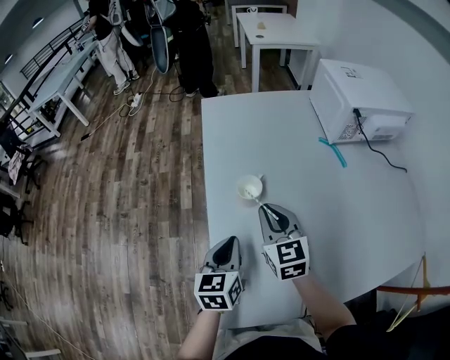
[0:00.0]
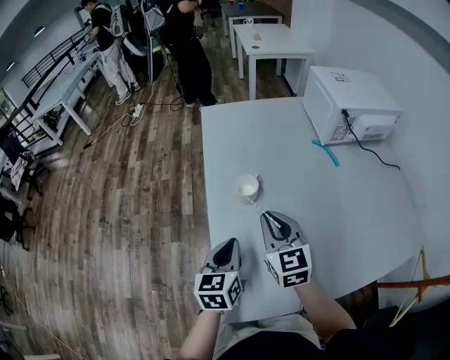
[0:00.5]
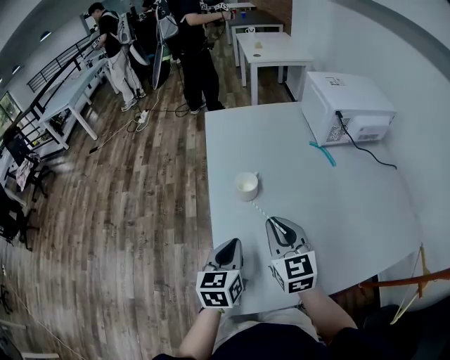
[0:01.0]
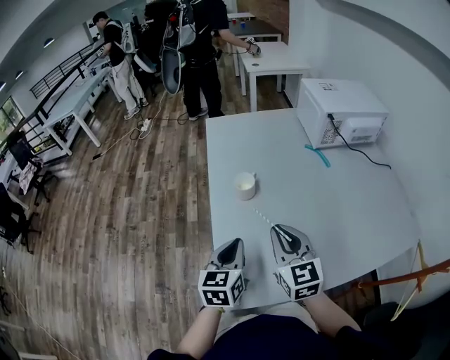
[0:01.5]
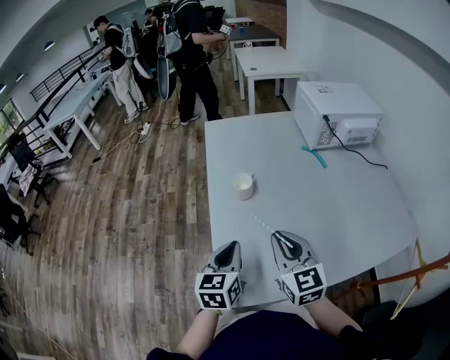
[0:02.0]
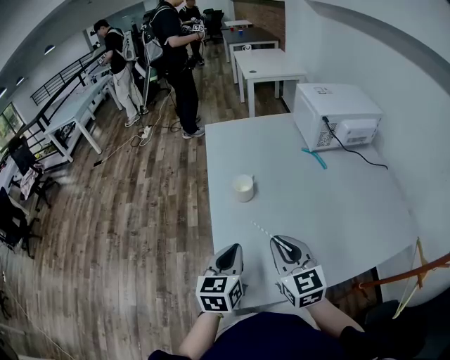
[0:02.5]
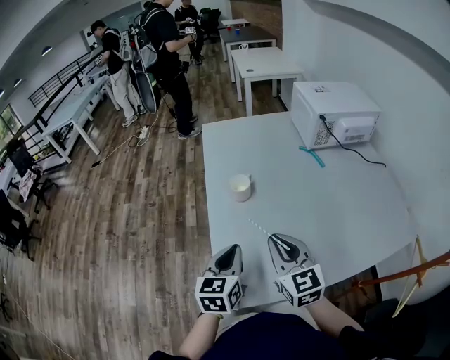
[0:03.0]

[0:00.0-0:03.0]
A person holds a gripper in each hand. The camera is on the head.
0:00.0 to 0:01.5: The left gripper moves backward and upward, approximately 10 cm. Meanwhile the right gripper moves backward and upward, some 15 cm.
0:01.5 to 0:03.0: The grippers stay close to where they were, moving slightly.

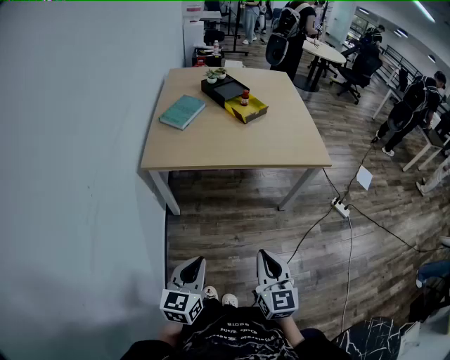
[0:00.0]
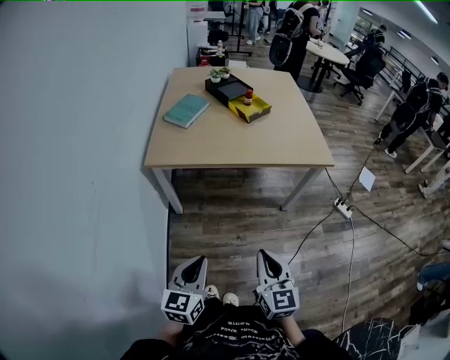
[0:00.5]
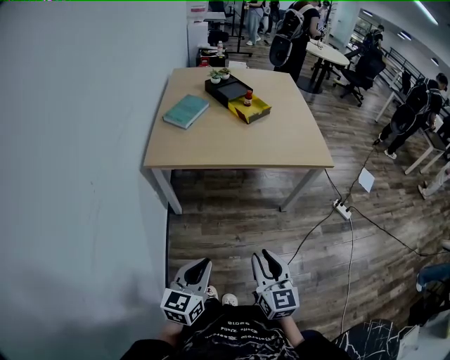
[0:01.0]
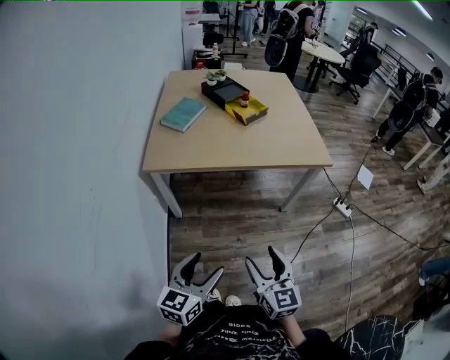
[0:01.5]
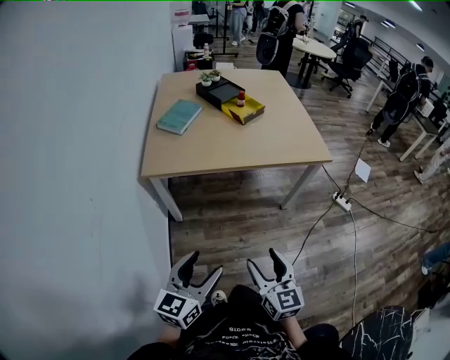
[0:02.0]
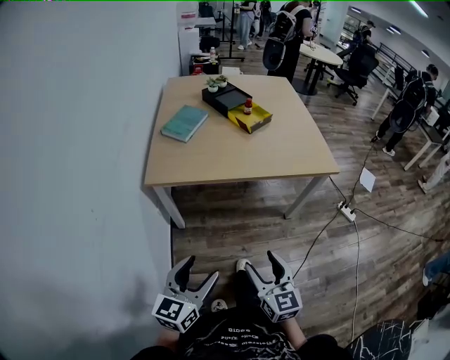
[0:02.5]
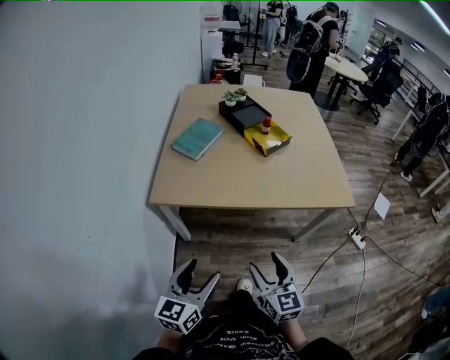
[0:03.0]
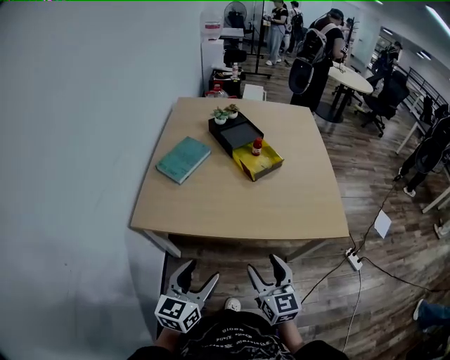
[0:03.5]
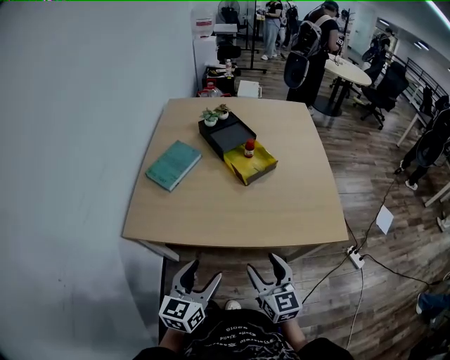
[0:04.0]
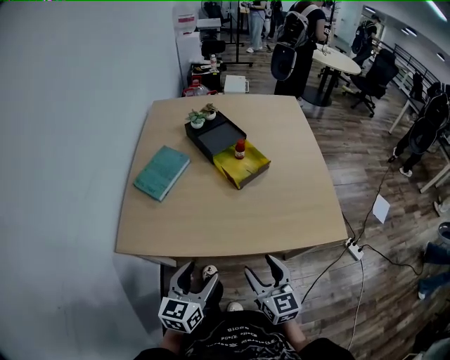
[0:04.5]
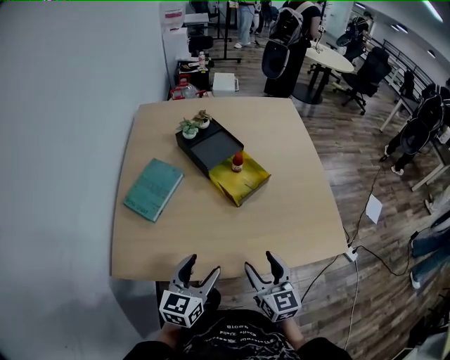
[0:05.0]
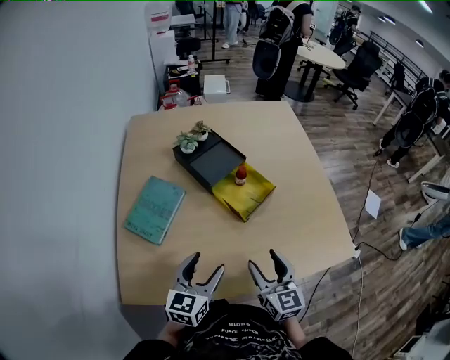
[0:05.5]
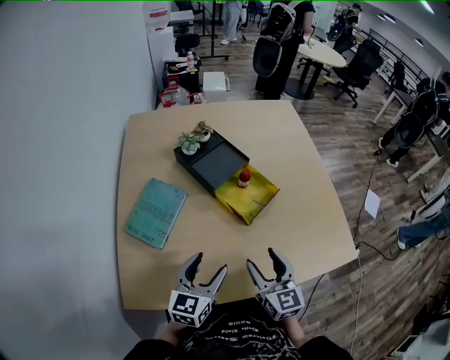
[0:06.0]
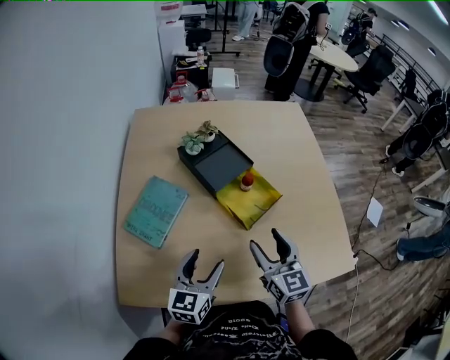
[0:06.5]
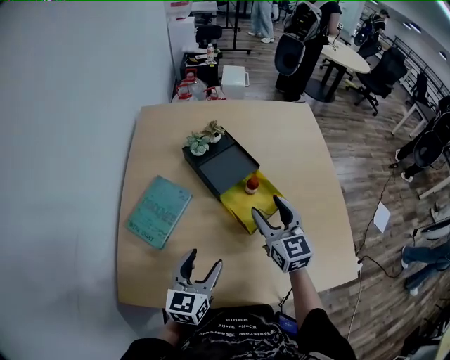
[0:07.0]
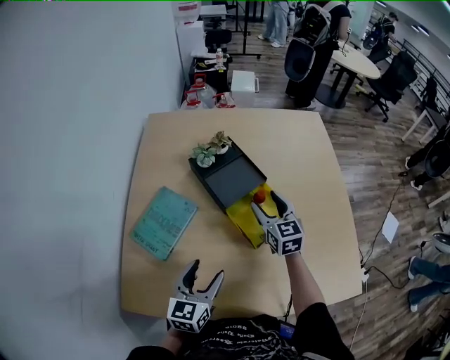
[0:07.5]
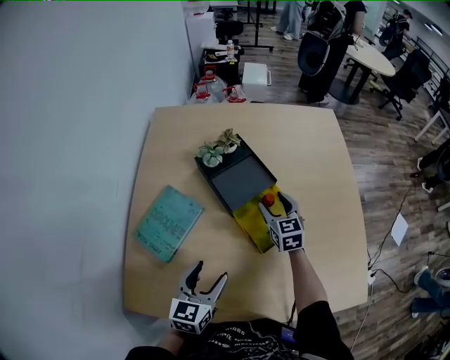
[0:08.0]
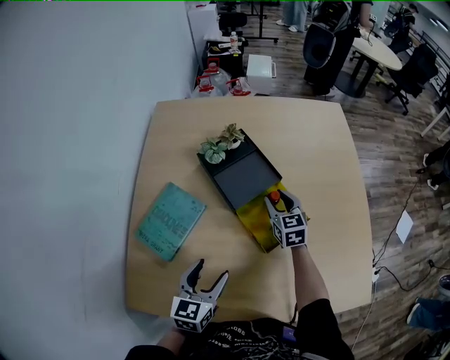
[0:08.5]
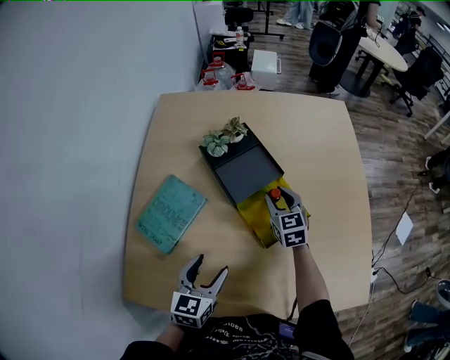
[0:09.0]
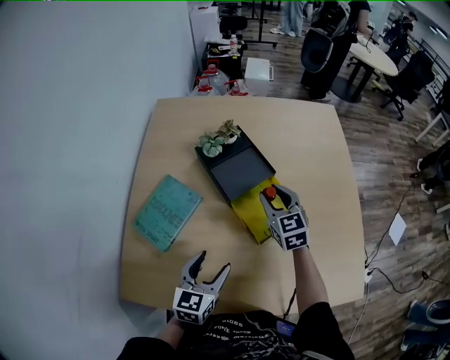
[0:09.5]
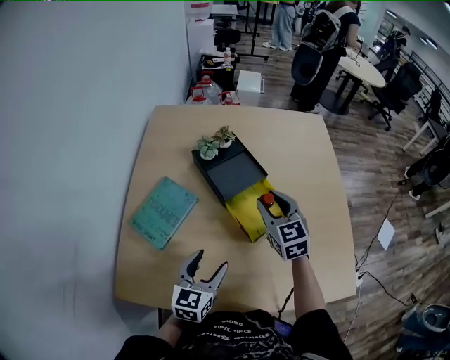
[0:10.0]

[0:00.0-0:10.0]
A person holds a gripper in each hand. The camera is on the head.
0:00.0 to 0:02.0: The right gripper opens its fingers. Meanwhile the left gripper opens its fingers.
0:02.0 to 0:04.0: Both grippers move forward, approximately 35 cm.
0:04.0 to 0:06.0: Both grippers travel together forward, roughly 25 cm.
0:06.0 to 0:08.0: The left gripper goes roughly 10 cm forward. Meanwhile the right gripper goes some 30 cm forward.
0:08.0 to 0:10.0: The right gripper goes some 15 cm upward and backward, and closes.

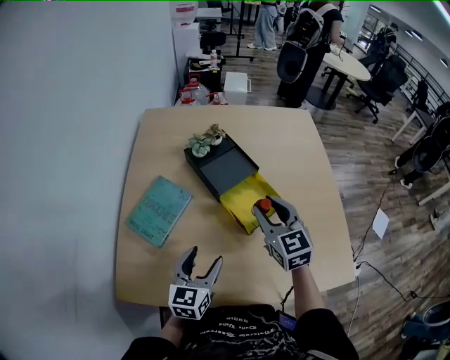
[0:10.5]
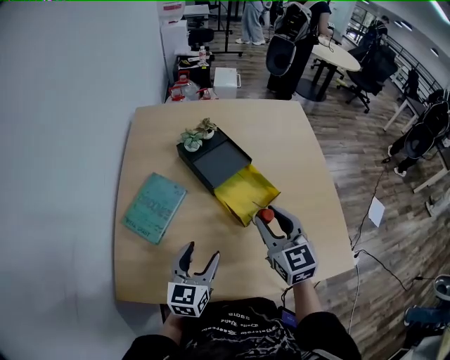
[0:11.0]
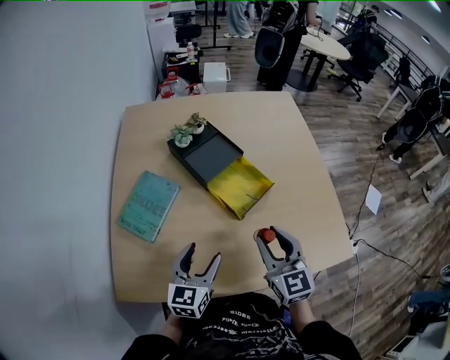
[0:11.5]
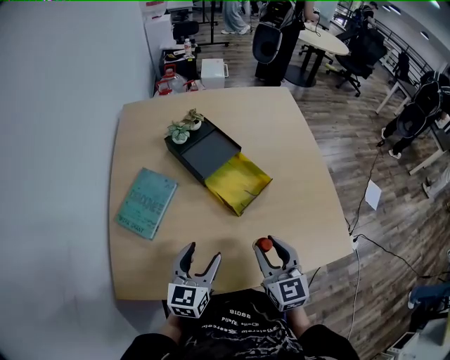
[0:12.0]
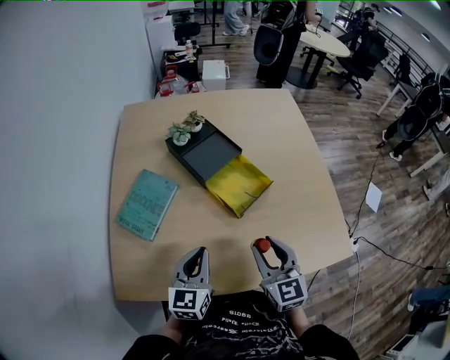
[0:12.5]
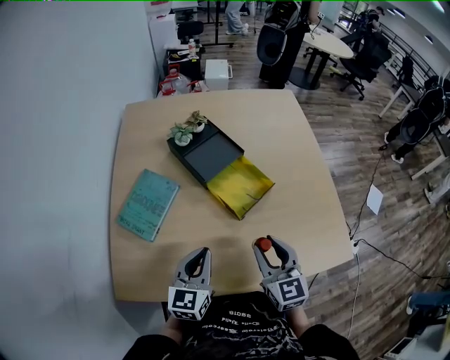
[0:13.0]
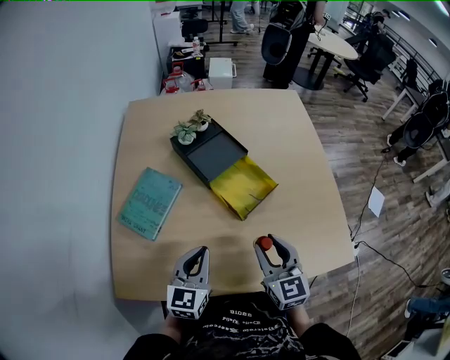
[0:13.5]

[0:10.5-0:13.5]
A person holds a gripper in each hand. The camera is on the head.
0:10.5 to 0:12.0: The right gripper travels backward by some 15 cm.
0:12.0 to 0:13.5: The left gripper closes up.

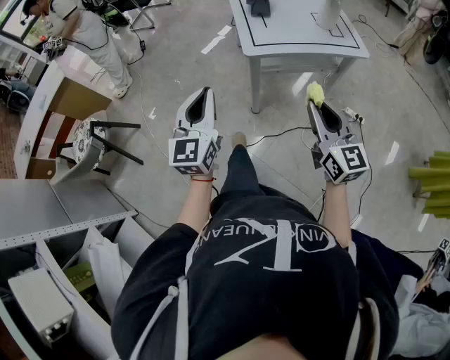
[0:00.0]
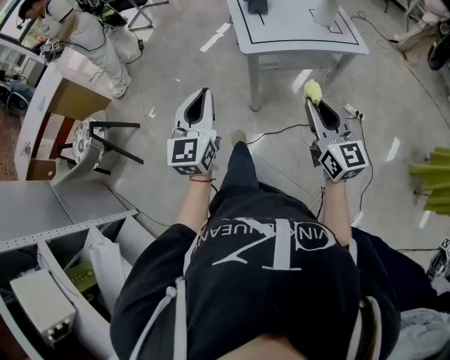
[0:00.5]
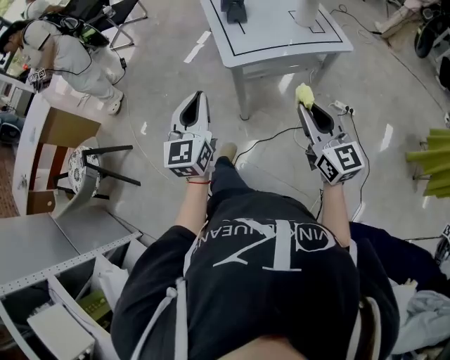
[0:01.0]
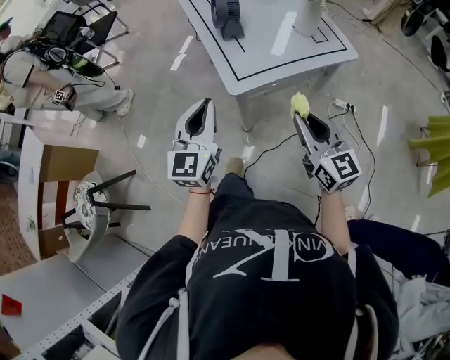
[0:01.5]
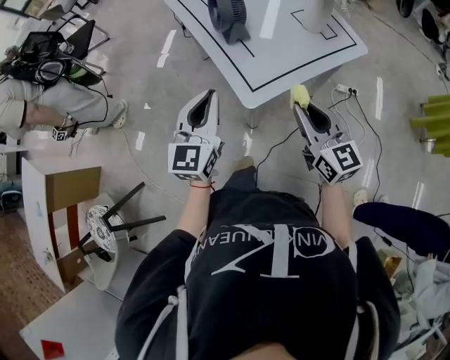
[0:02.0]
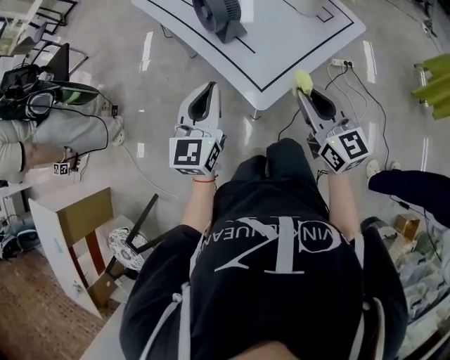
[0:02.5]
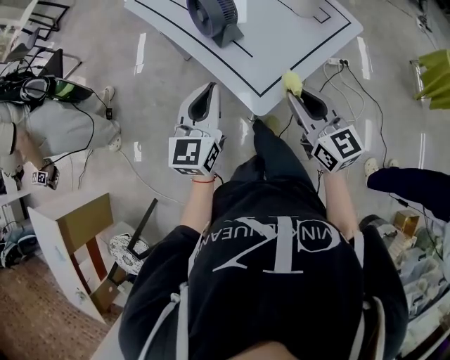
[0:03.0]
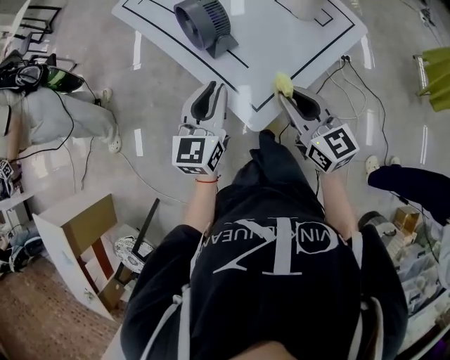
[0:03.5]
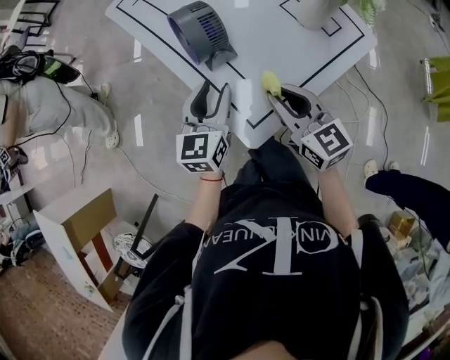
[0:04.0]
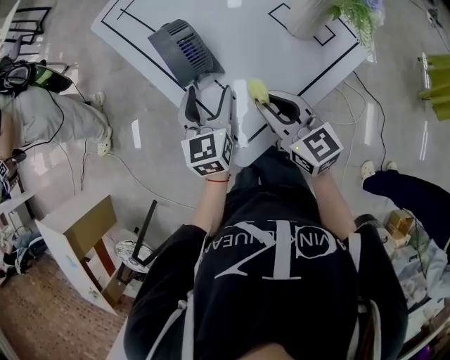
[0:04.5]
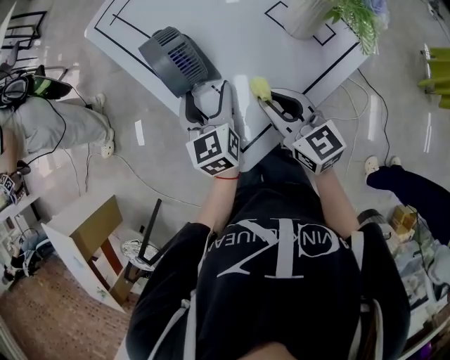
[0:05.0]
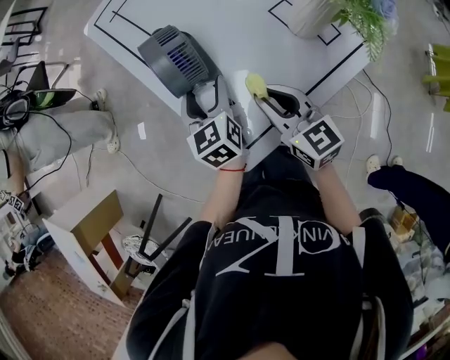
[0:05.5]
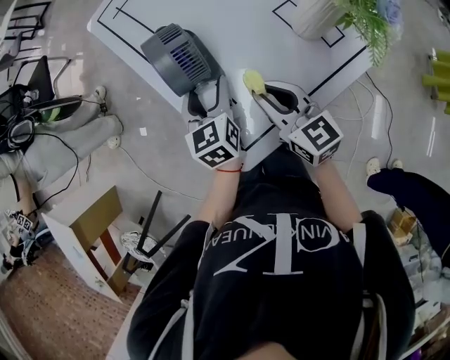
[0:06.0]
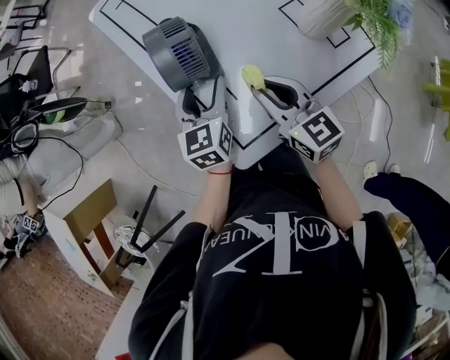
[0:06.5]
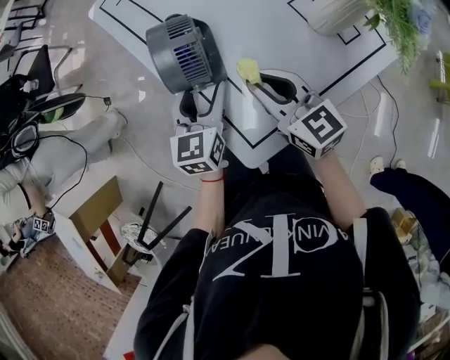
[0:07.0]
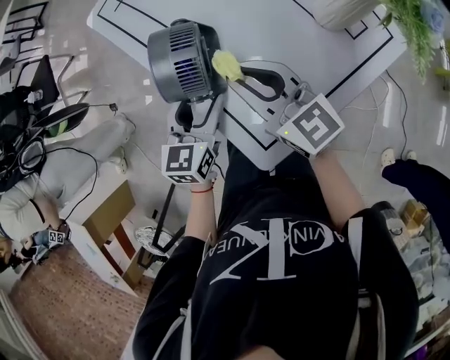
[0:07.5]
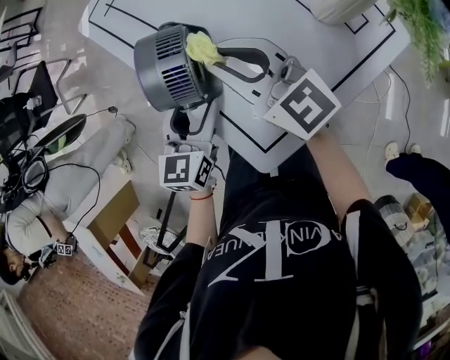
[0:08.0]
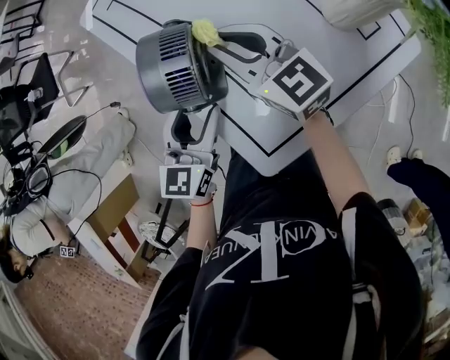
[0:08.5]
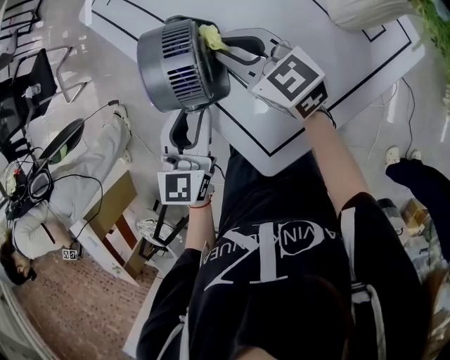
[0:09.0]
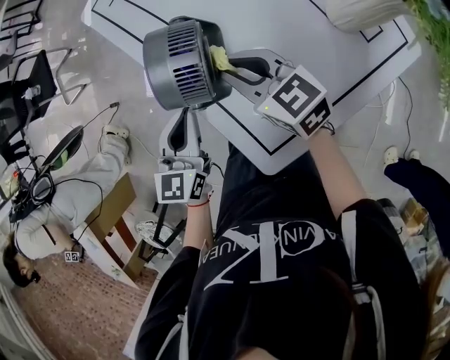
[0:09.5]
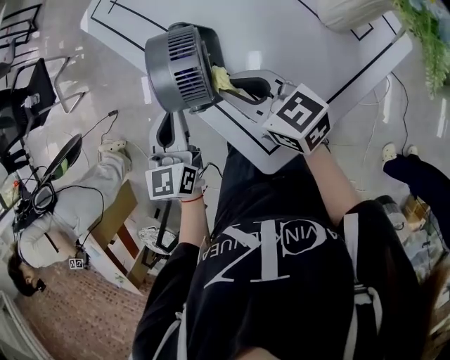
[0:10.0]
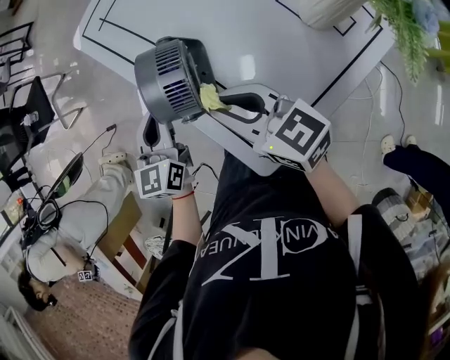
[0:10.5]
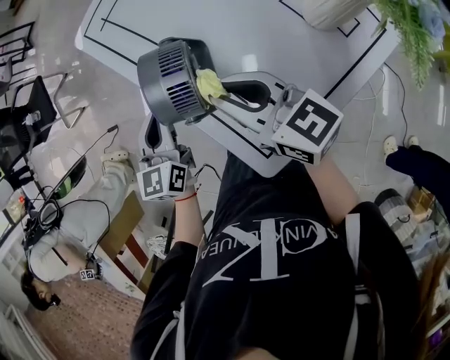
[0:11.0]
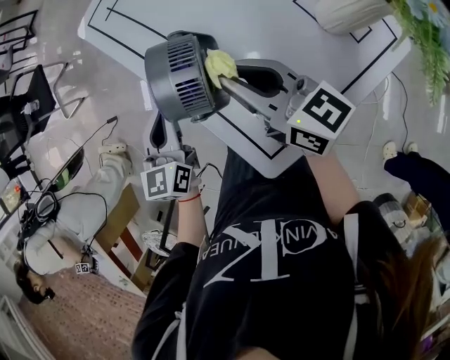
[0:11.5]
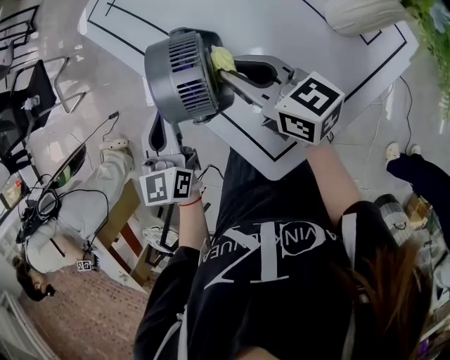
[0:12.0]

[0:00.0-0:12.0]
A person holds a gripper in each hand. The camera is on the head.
0:00.0 to 0:02.0: The grippers both shift forward by some 25 cm. The left gripper turns by approximately 30 degrees.
0:02.0 to 0:04.0: The left gripper is displaced forward and downward by roughly 25 cm, and opens its fingers, while the right gripper goes approximately 20 cm forward.
0:04.0 to 0:06.0: Both grippers travel together forward, roughly 5 cm. The left gripper rotates approximately 20 degrees, and opens up.
0:06.0 to 0:08.0: The left gripper is displaced to the left by approximately 5 cm, and changes its angle by roughly 30 degrees. Meanwhile the right gripper shifts about 15 cm forward, to the left and upward.
0:08.0 to 0:10.0: The right gripper travels downward by about 5 cm, and turns by about 20 degrees. Meanwhile the left gripper moves to the left, some 5 cm, and closes.
0:10.0 to 0:12.0: The right gripper shifts by some 5 cm.
